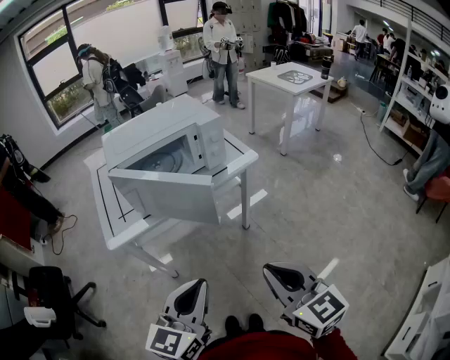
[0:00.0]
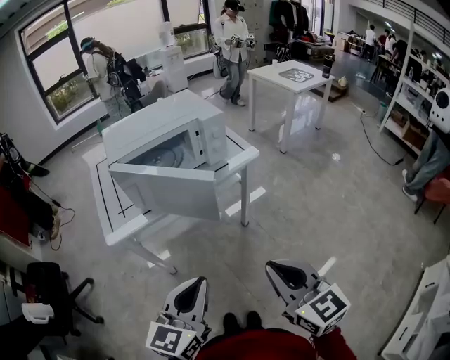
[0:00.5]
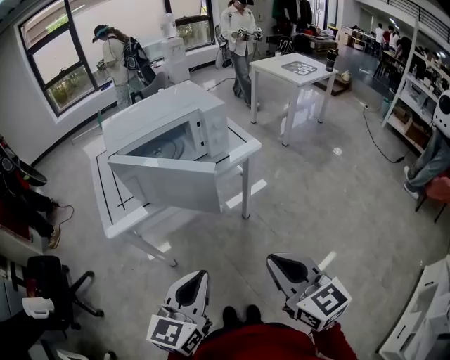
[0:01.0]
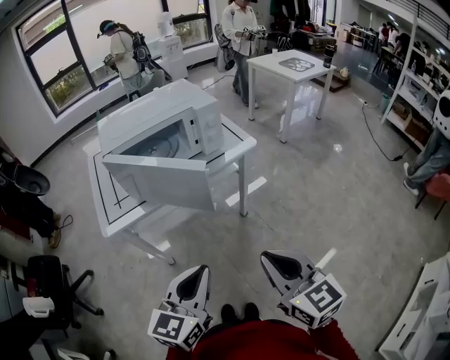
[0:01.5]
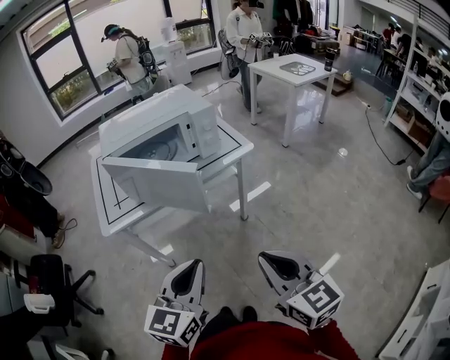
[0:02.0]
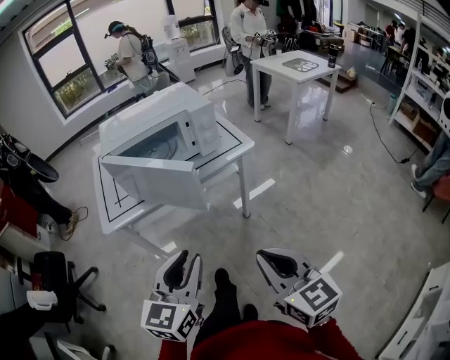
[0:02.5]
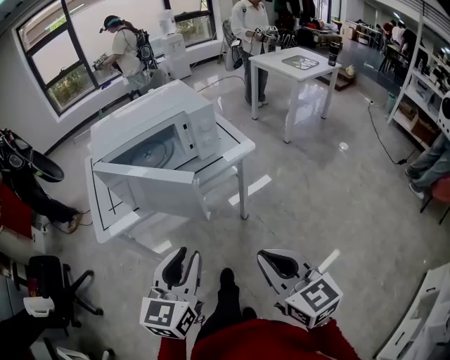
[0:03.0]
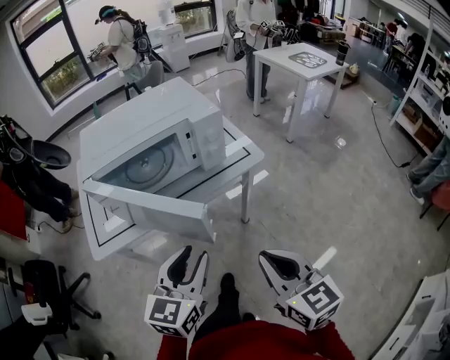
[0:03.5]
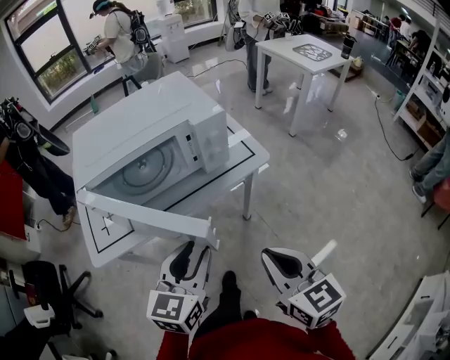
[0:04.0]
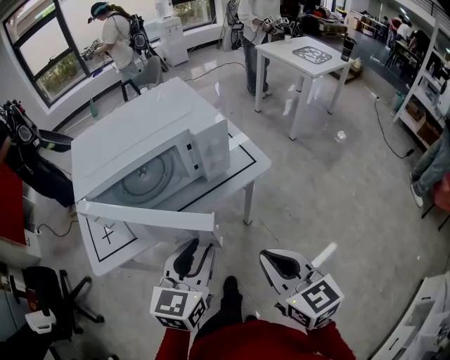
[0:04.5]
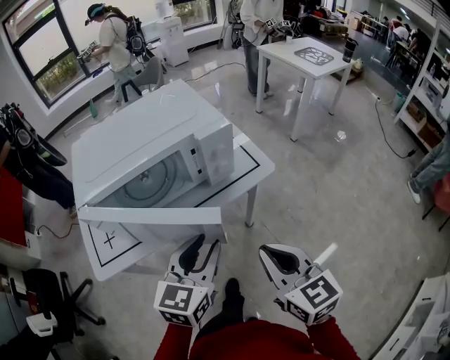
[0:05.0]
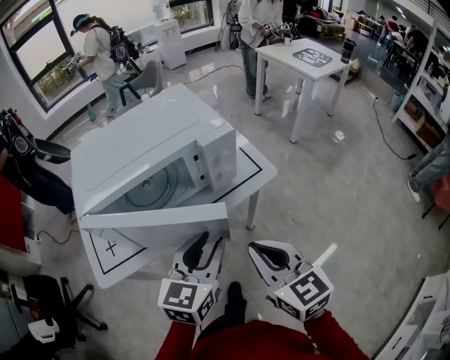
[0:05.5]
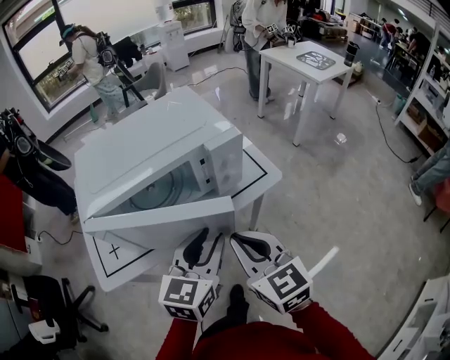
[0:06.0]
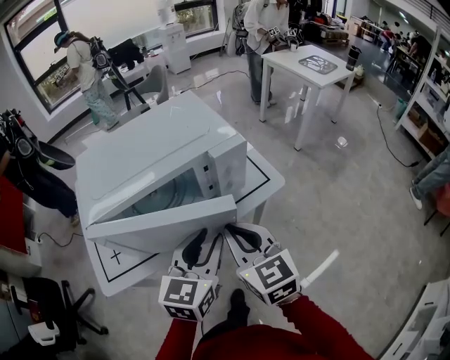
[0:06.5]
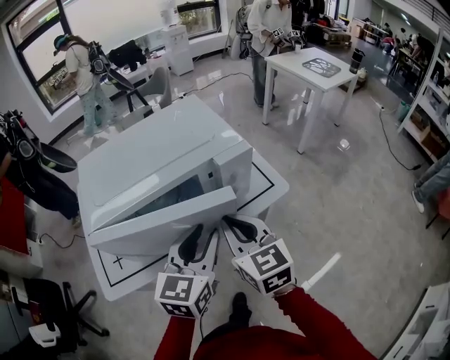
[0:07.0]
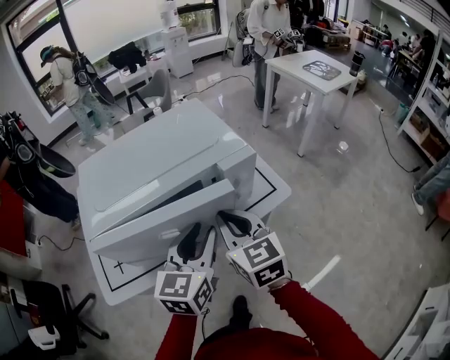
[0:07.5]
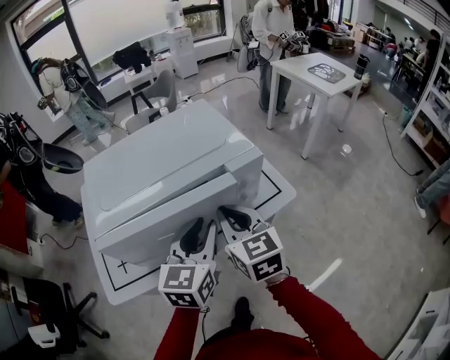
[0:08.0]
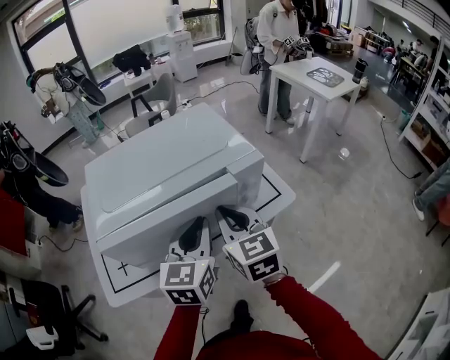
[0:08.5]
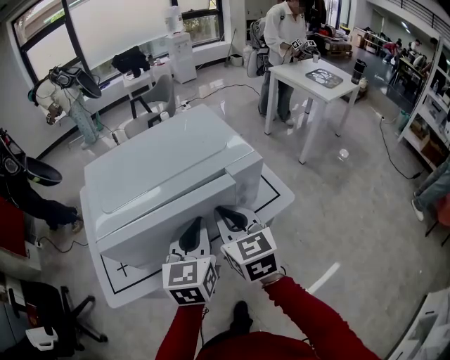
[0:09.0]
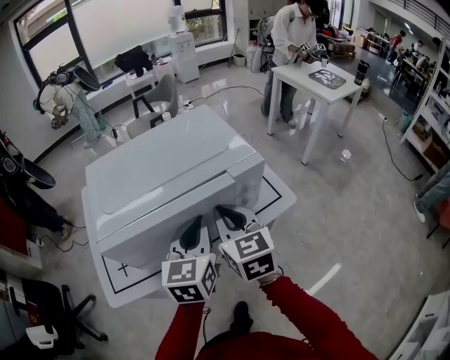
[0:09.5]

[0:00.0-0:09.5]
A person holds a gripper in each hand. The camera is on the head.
0:00.0 to 0:02.0: The grippers stay close to where they were, moving slightly.
0:02.0 to 0:04.0: The grippers both shift forward by approximately 15 cm. The left gripper opens up.
0:04.0 to 0:05.5: Both grippers move forward, some 5 cm.
0:05.5 to 0:07.5: The left gripper shifts approximately 10 cm forward; the right gripper heads forward and to the left, covering about 15 cm.
0:07.5 to 0:09.5: The left gripper closes up.

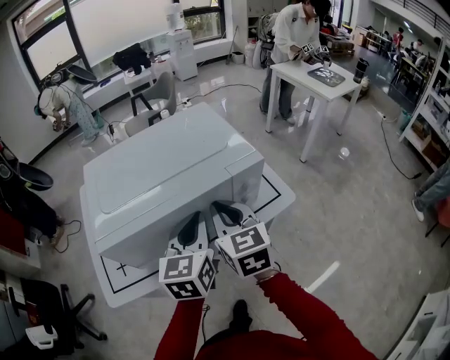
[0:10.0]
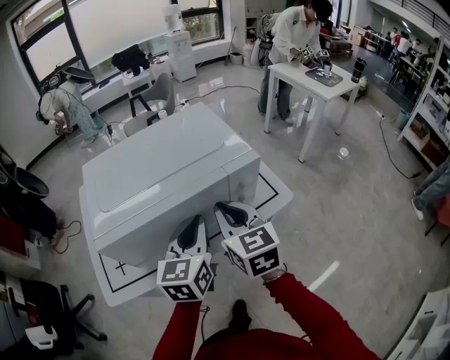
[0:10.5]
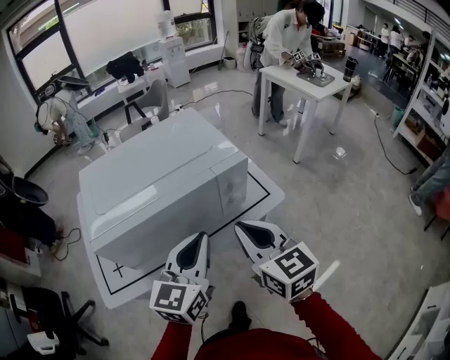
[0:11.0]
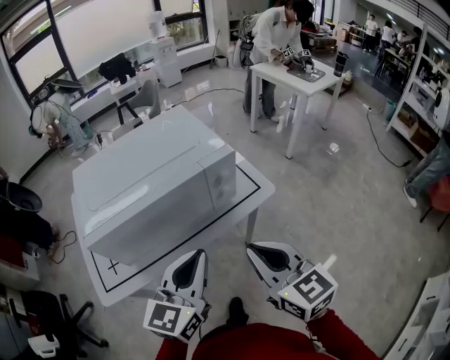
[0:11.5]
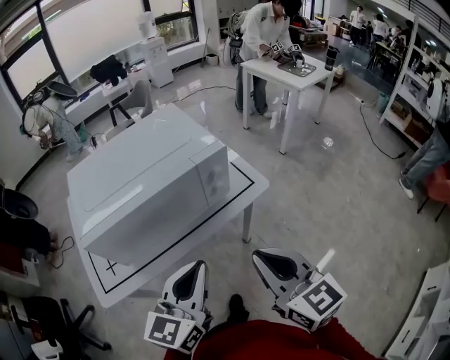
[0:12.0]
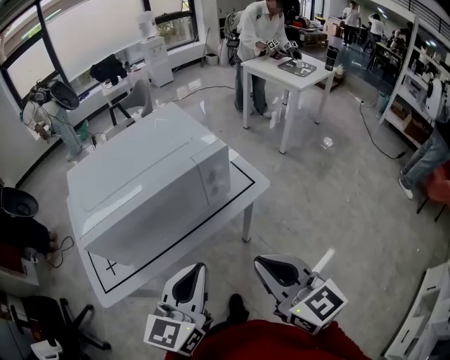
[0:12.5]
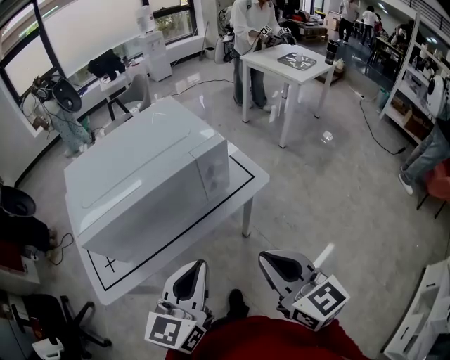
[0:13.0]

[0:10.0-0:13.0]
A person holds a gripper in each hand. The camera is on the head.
0:10.0 to 0:11.5: The left gripper moves backward, approximately 15 cm. The right gripper shifts some 20 cm backward and to the right.
0:11.5 to 0:13.0: The right gripper shifts by about 5 cm.

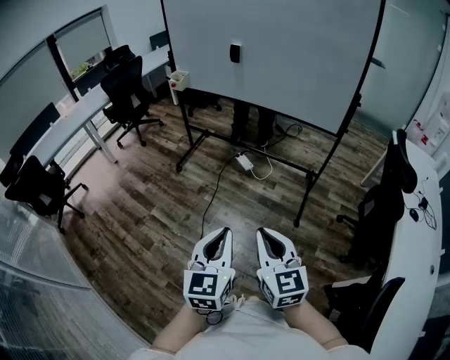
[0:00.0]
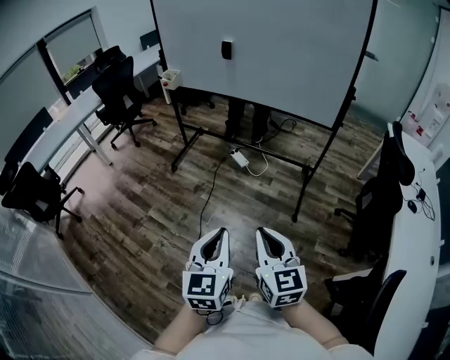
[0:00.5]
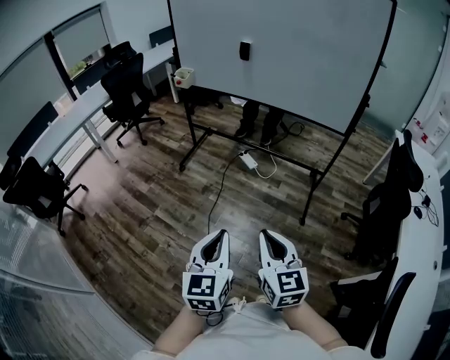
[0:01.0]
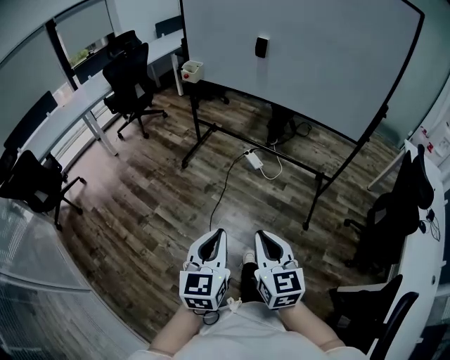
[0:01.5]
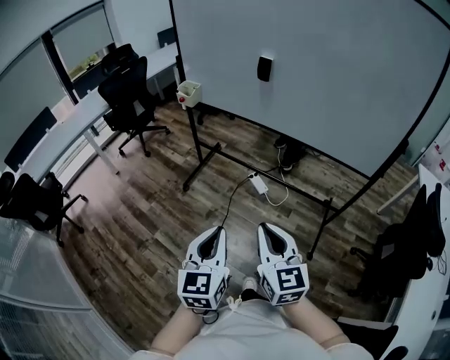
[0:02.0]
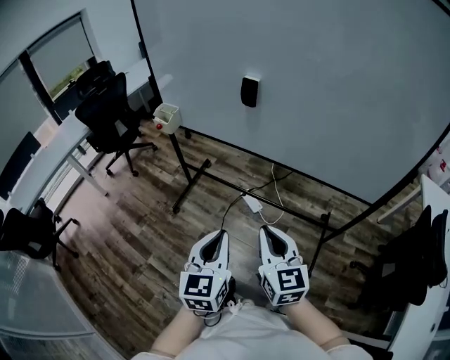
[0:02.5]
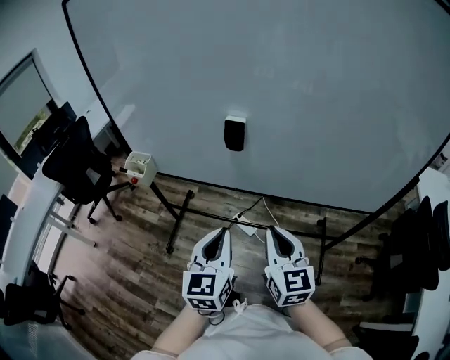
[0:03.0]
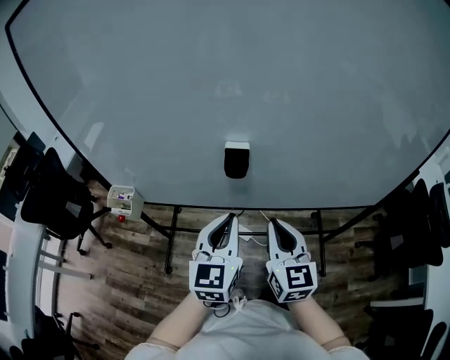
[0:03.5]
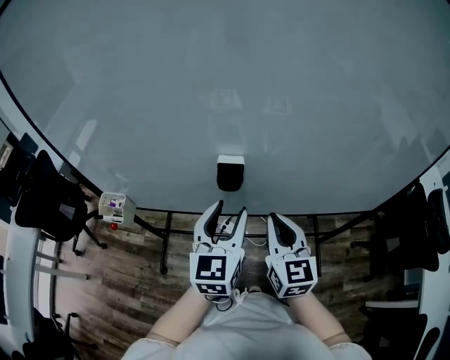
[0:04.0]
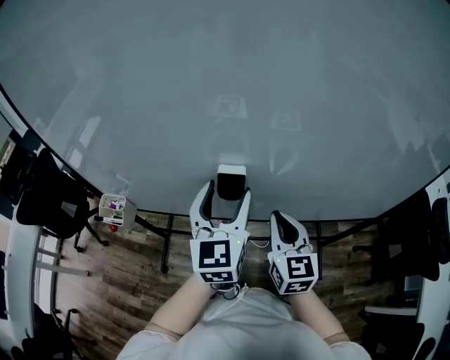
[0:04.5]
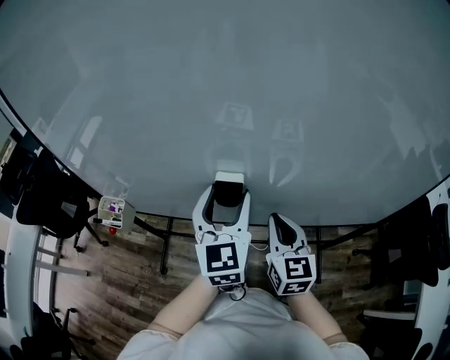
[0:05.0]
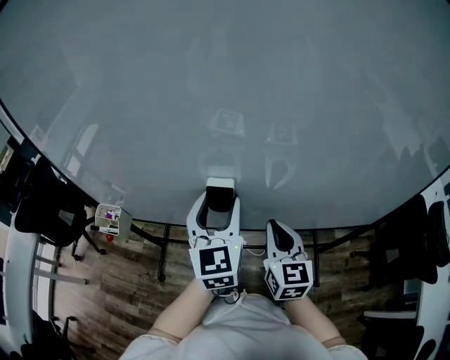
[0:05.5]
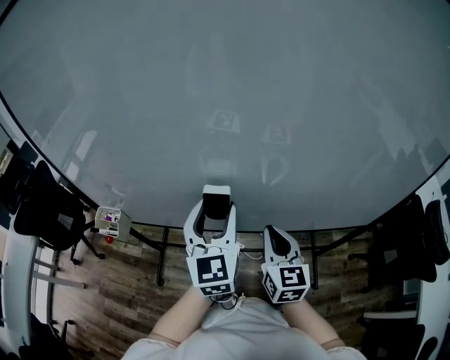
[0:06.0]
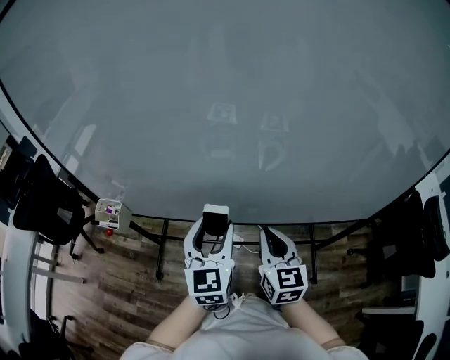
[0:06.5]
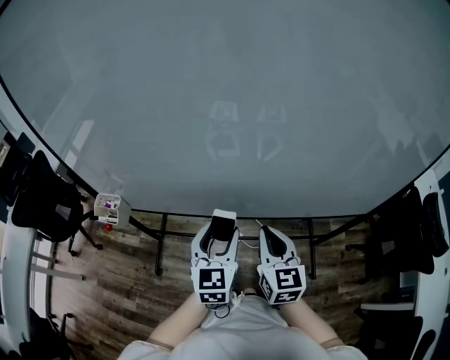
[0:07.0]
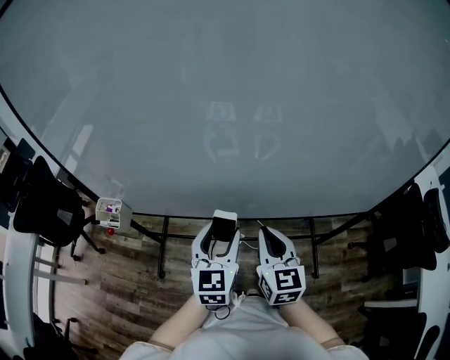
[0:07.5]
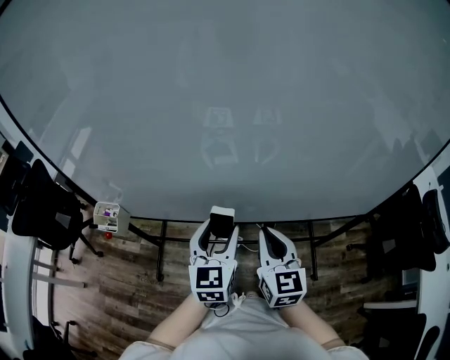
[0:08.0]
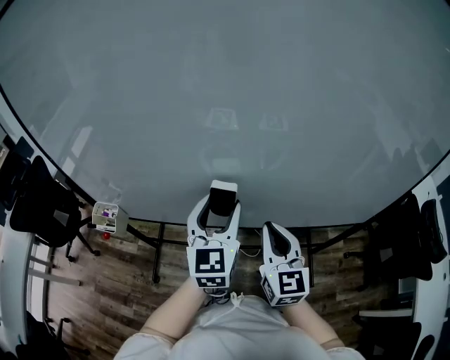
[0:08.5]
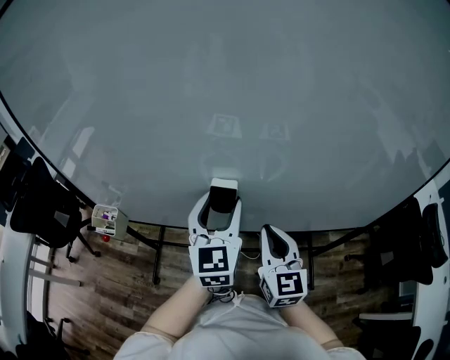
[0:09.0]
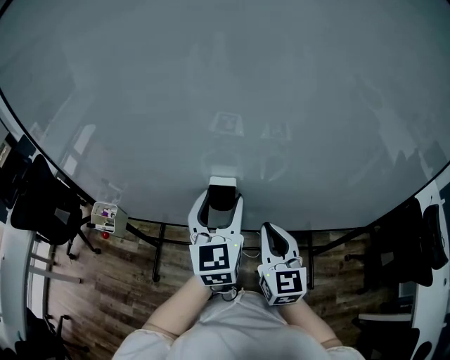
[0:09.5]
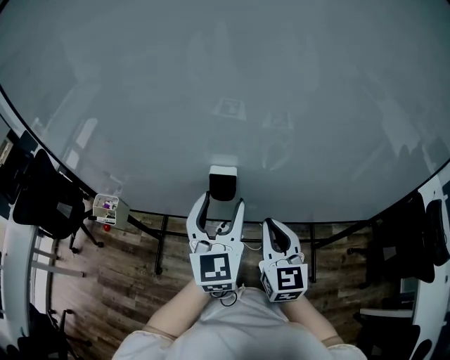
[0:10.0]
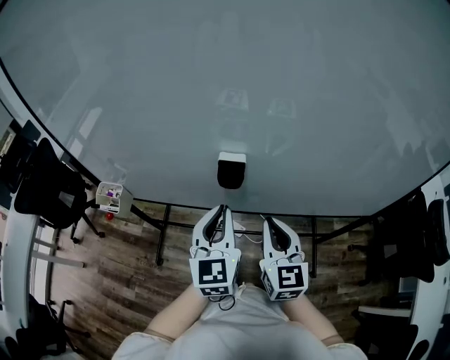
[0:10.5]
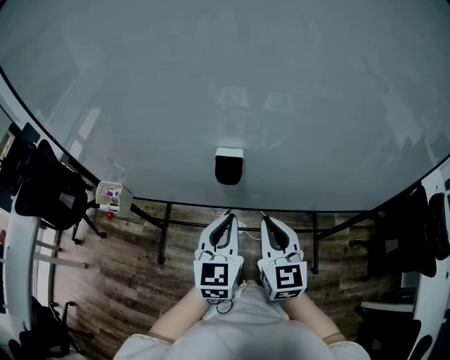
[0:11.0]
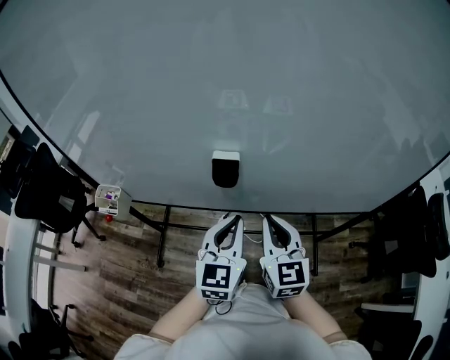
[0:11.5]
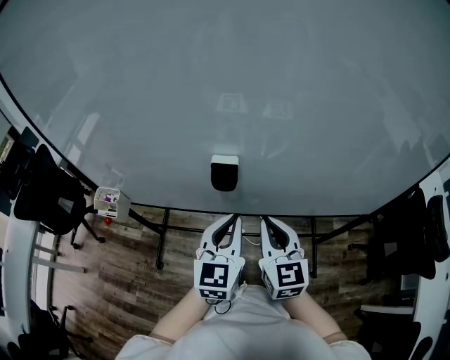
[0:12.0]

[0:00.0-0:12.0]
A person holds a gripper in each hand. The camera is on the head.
0:00.0 to 0:02.0: The grippers both shift forward by roughly 30 cm.
0:02.0 to 0:04.0: The pair of grippers is taken roughly 50 cm. The left gripper rotates some 30 degrees, and opens up, while the right gripper rotates roughly 30 degrees.
0:04.0 to 0:06.0: The left gripper moves roughly 5 cm.
0:06.0 to 0:08.0: The left gripper moves downward, about 10 cm.
0:08.0 to 0:10.0: The left gripper is displaced upward by approximately 5 cm.
0:10.0 to 0:12.0: The left gripper heads downward, covering roughly 5 cm, and closes its fingers.

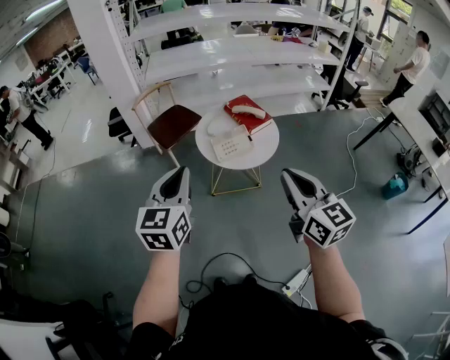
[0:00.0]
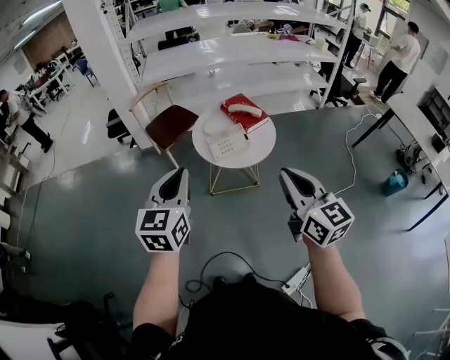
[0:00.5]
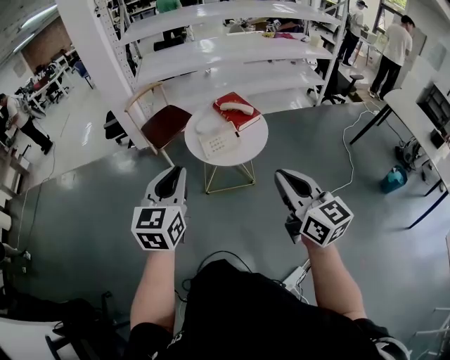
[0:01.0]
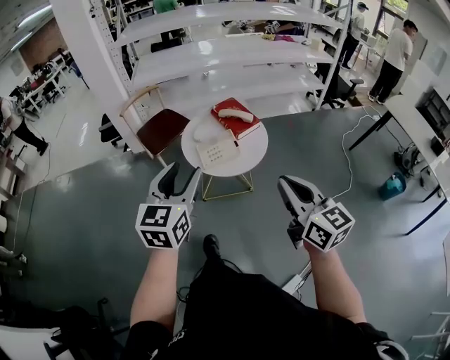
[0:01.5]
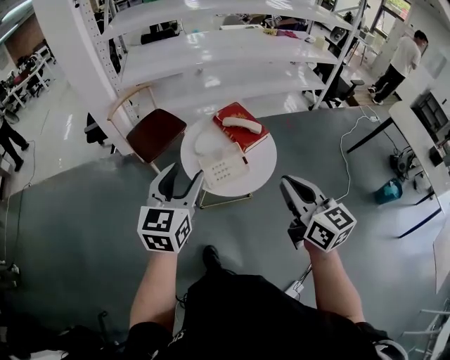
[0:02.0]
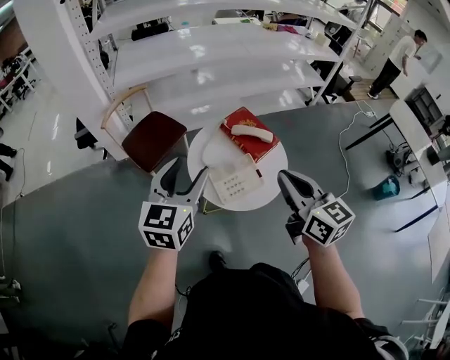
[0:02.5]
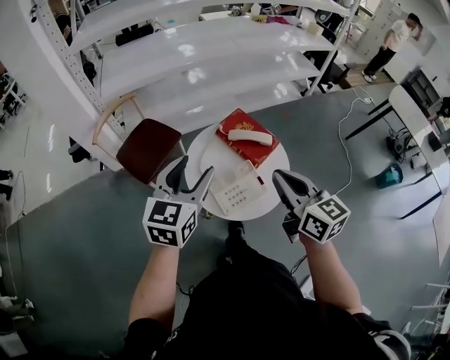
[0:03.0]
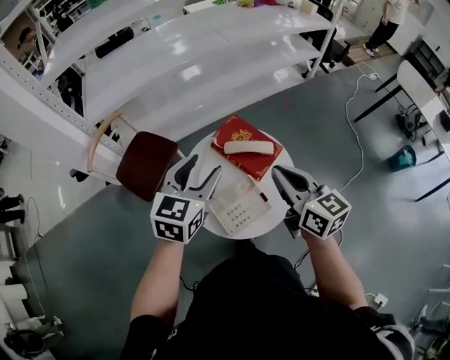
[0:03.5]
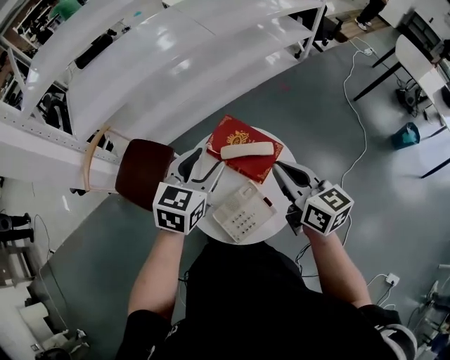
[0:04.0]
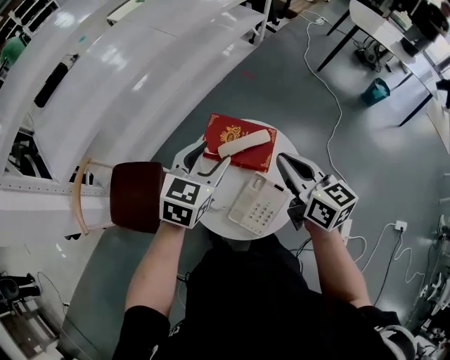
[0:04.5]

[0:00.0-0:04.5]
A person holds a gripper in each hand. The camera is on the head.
0:00.0 to 0:02.0: Both grippers move forward, roughly 20 cm. The left gripper opens its fingers.
0:02.0 to 0:04.5: The right gripper shifts by some 35 cm, and swivels about 40 degrees, while the left gripper ends up about 40 cm from where it was, and rotates some 50 degrees.
